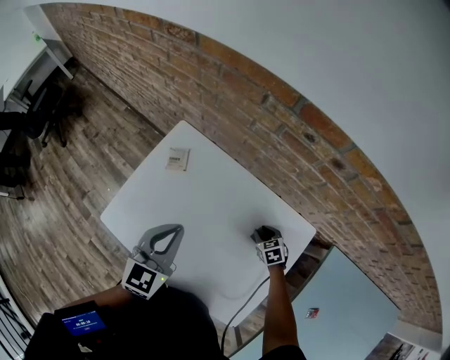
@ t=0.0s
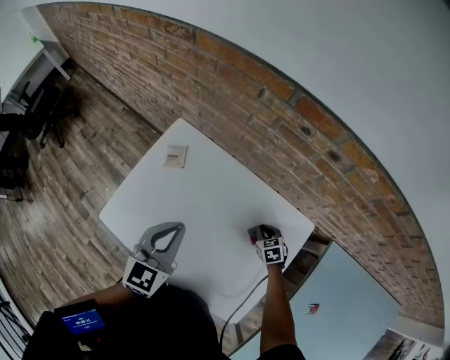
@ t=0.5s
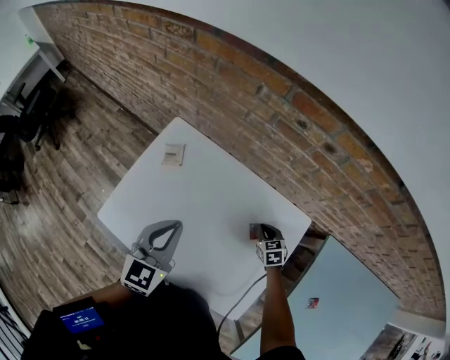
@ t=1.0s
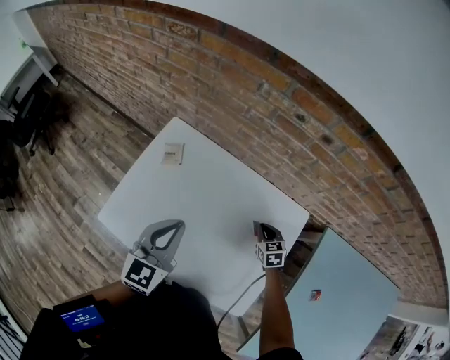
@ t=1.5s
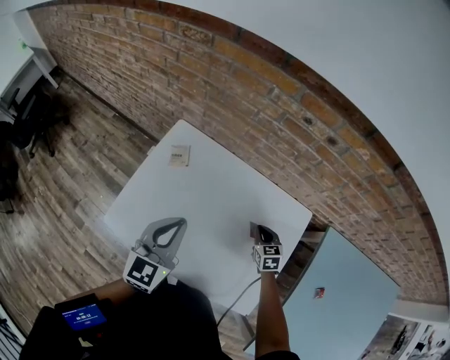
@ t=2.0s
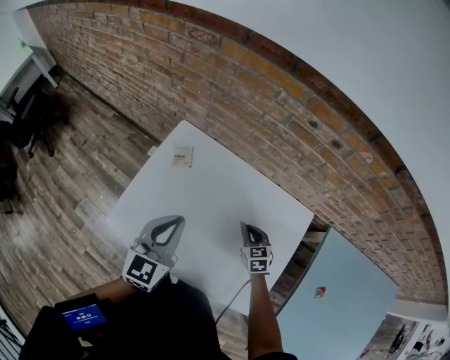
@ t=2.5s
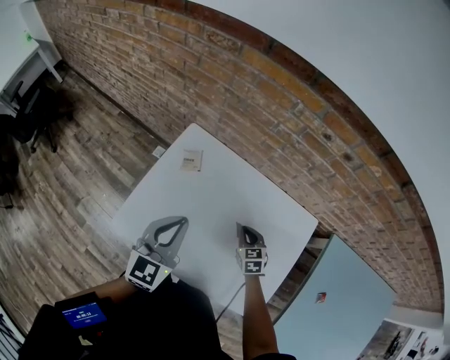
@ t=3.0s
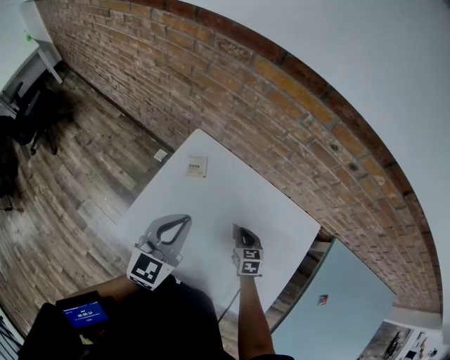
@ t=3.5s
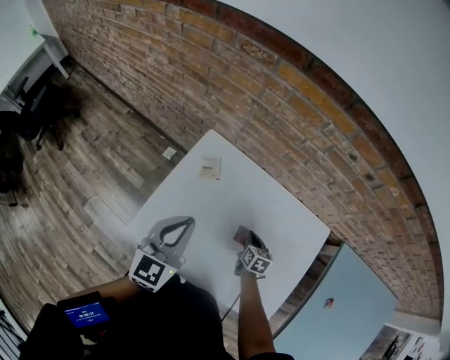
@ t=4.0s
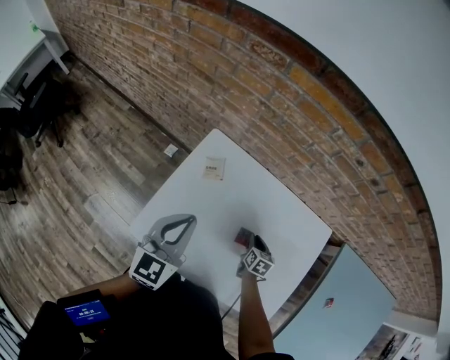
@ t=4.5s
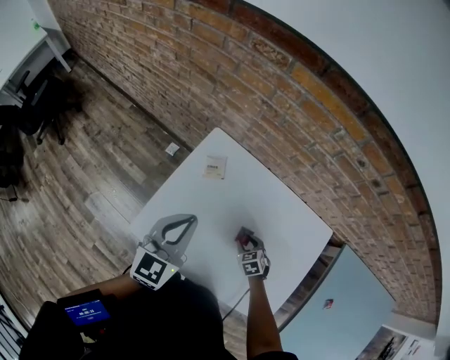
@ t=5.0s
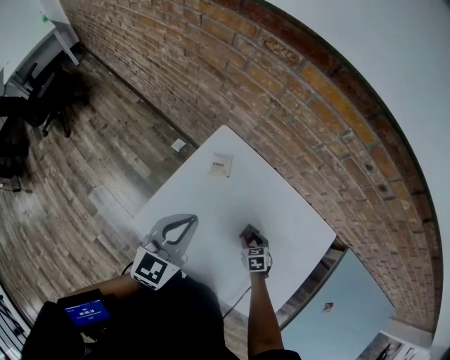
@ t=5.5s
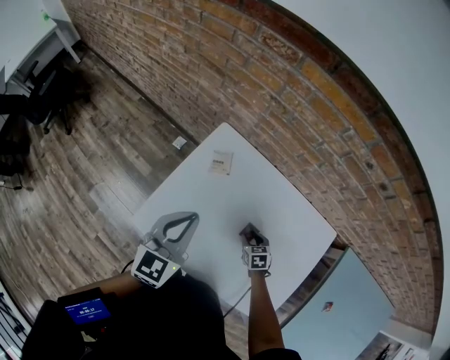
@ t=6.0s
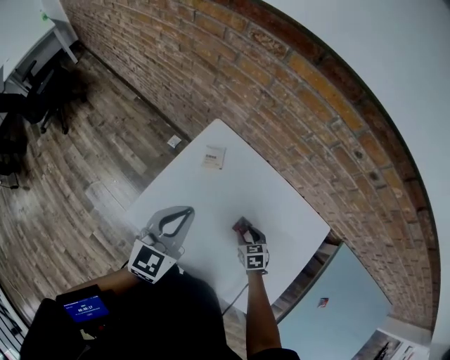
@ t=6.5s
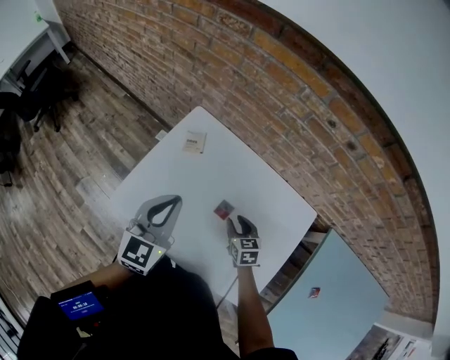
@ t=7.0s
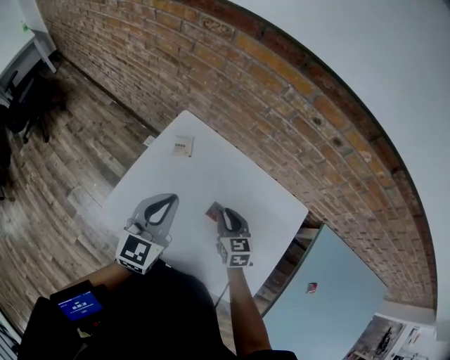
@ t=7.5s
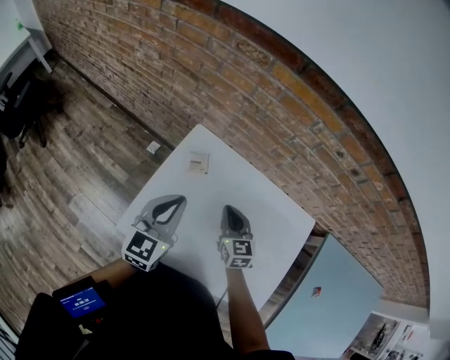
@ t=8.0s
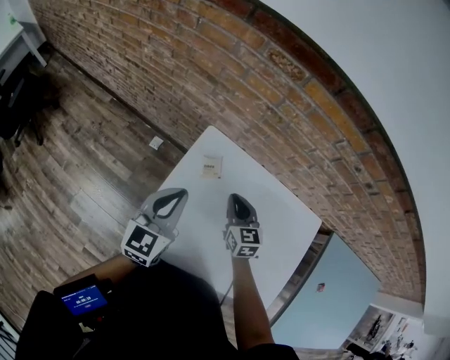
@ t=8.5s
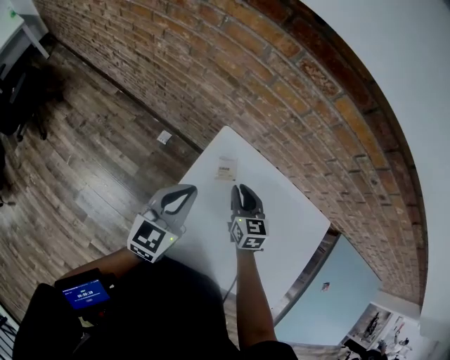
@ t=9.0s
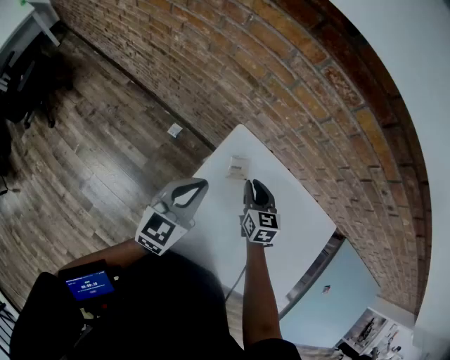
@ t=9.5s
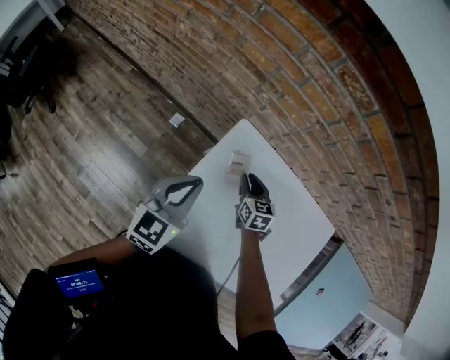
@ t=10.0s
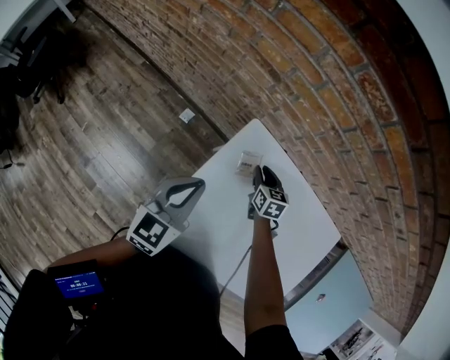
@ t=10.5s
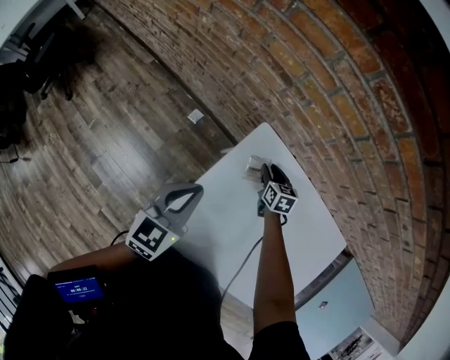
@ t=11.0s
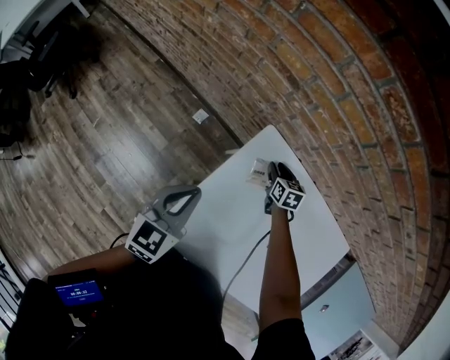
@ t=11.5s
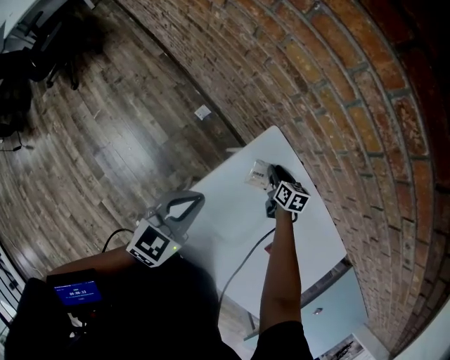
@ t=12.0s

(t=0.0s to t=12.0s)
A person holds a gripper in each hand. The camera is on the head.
t=0.0s - t=2.0s: The left gripper moves some 5 cm. Meanwhile the right gripper heads upward, covering approximately 10 cm, turns by some 20 degrees, and closes its fingers.
t=2.0s - t=4.0s: The two grippers go some 10 cm to the left. The right gripper rotates roughly 30 degrees.
t=4.0s - t=6.0s: The right gripper ends up about 5 cm from where it was, changes its angle by some 30 degrees, and opens up.
t=6.0s - t=8.0s: The right gripper goes some 20 cm upward and to the left, tips its fingers upward by approximately 30 degrees, and closes its fingers.
t=8.0s - t=10.0s: The right gripper shifts roughly 20 cm forward, to the left and downward. Meanwhile the left gripper goes approximately 15 cm to the left and forward.
t=10.0s - t=12.0s: The left gripper shifts approximately 5 cm downward. Meanwhile the right gripper is displaced downward and forward by approximately 15 cm.

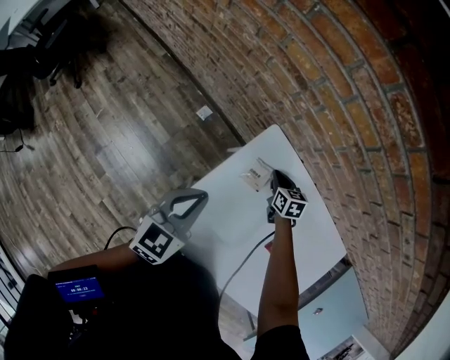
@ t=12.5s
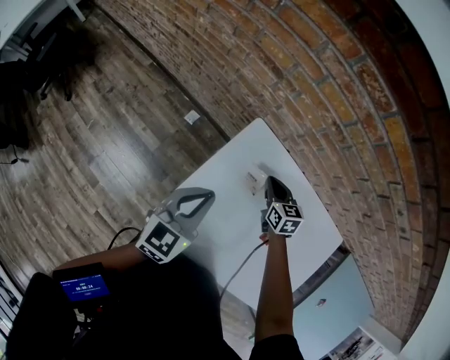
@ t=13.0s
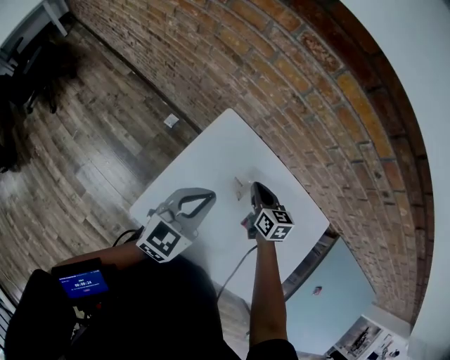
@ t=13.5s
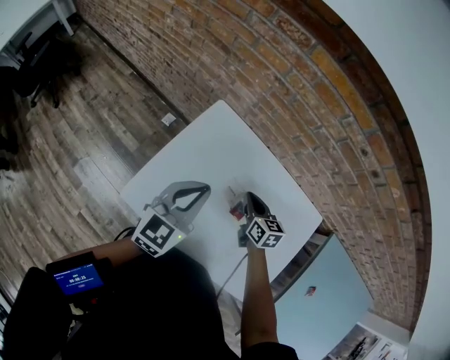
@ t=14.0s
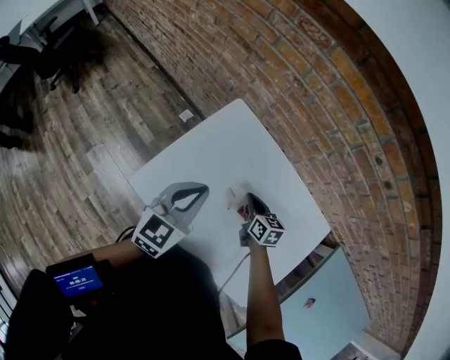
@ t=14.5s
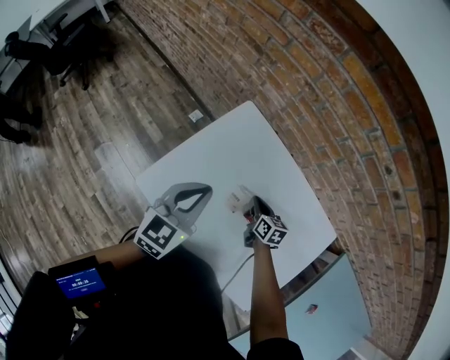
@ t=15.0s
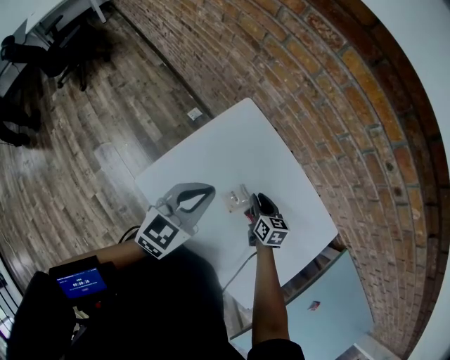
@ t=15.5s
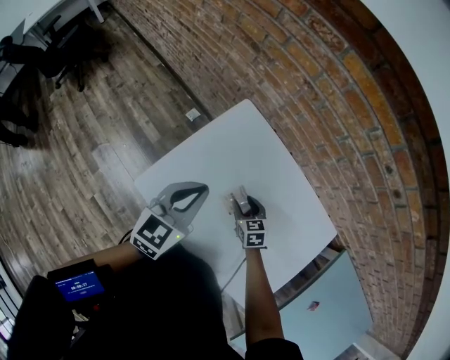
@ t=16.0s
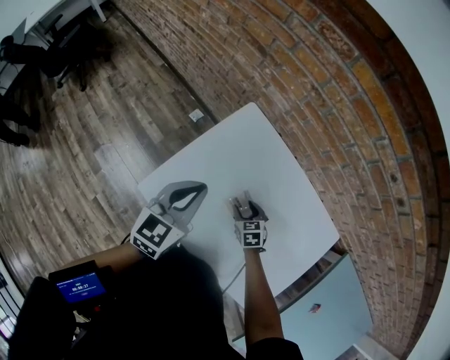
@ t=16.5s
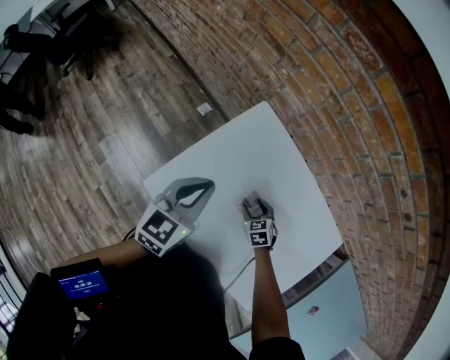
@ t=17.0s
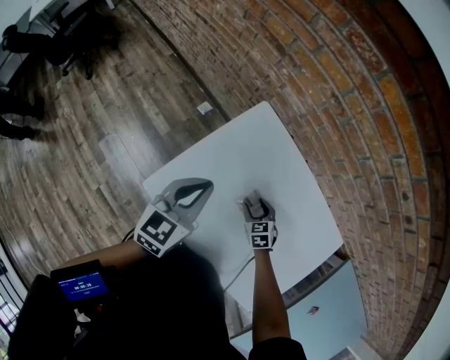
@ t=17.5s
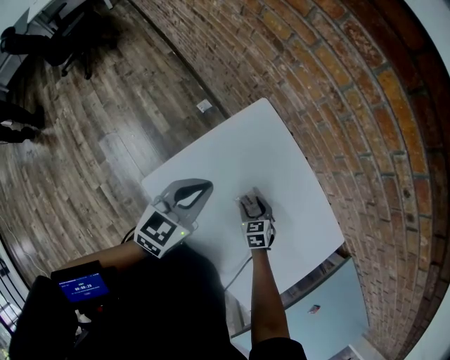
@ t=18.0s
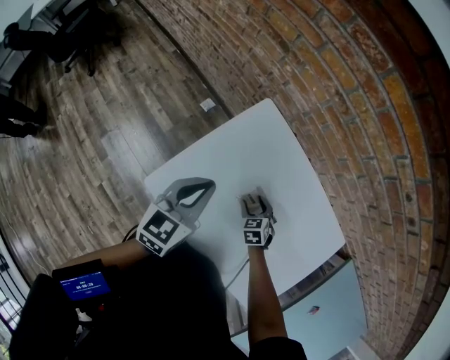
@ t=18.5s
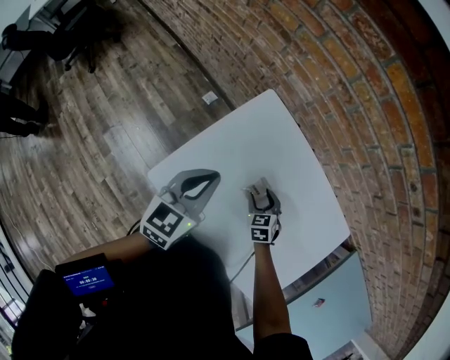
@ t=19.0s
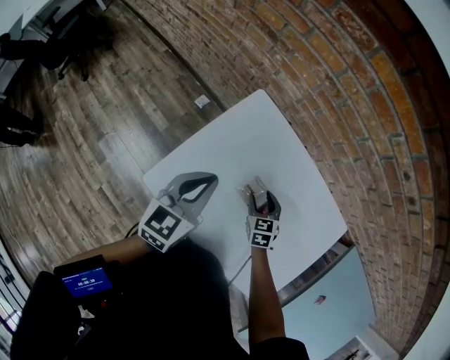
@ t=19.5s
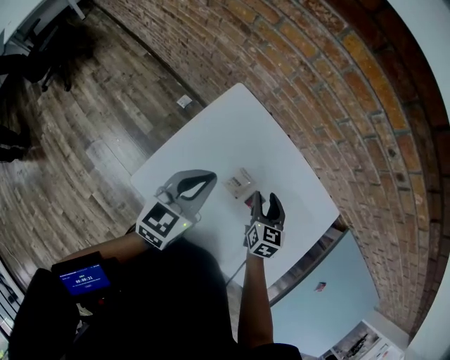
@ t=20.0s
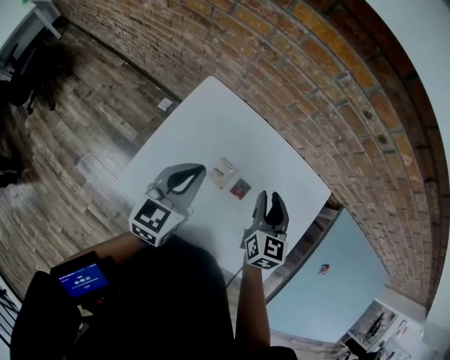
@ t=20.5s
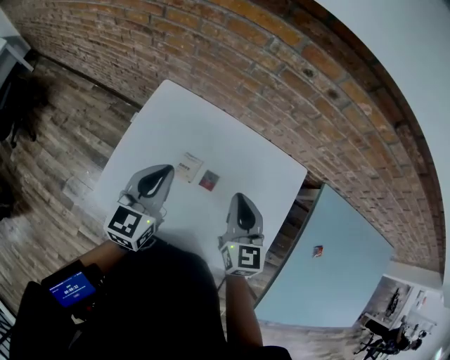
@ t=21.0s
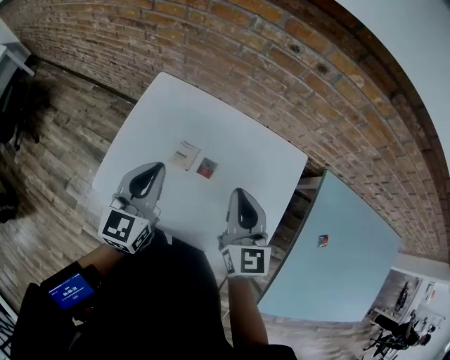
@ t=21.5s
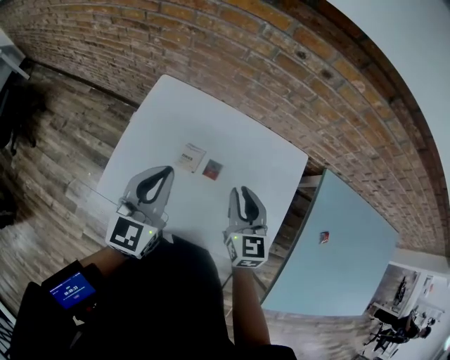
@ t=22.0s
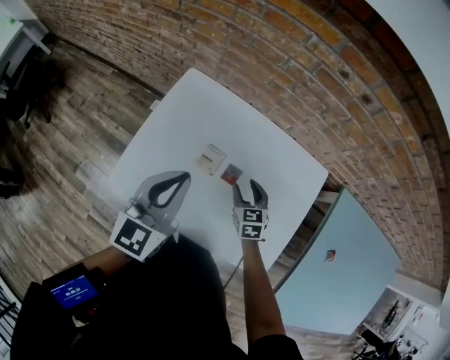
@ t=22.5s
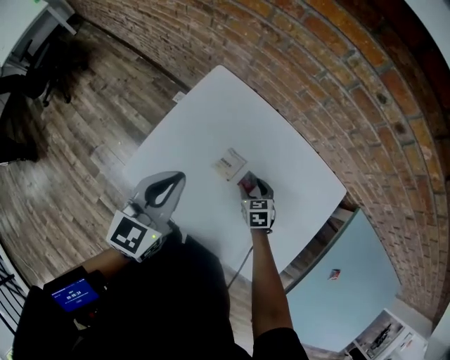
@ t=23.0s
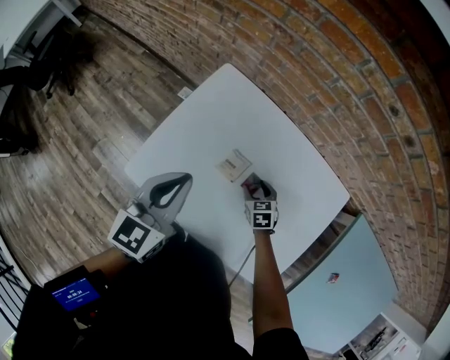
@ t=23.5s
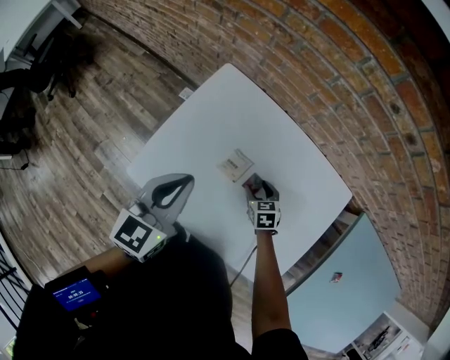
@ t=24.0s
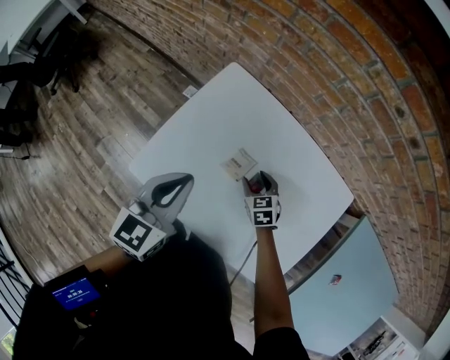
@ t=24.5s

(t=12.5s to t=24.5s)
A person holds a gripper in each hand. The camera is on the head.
t=12.5s - t=14.5s: The right gripper heads backward and to the right, covering some 20 cm; the left gripper moves to the right and backward, approximately 20 cm.
t=14.5s - t=16.5s: The right gripper goes roughly 10 cm downward, changes its angle by roughly 30 degrees, and opens its fingers.
t=16.5s - t=18.5s: There are only small adjustments of the grippers.
t=18.5s - t=20.5s: The left gripper heads to the right, covering roughly 10 cm. Meanwhile the right gripper travels upward and to the right by some 30 cm, tips its fingers upward by roughly 30 degrees, and closes.
t=20.5s - t=22.5s: The left gripper shifts by roughly 10 cm. Meanwhile the right gripper goes about 15 cm downward, rotates some 20 degrees, and closes and opens again.
t=22.5s - t=24.5s: The left gripper shifts approximately 5 cm to the left, while the right gripper goes about 10 cm downward and to the left.

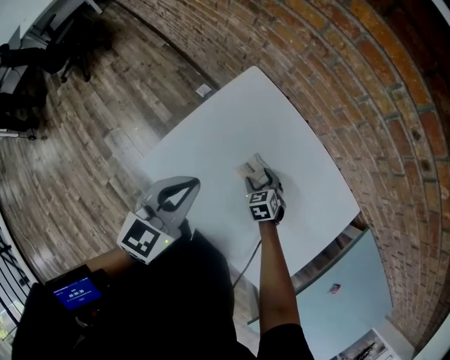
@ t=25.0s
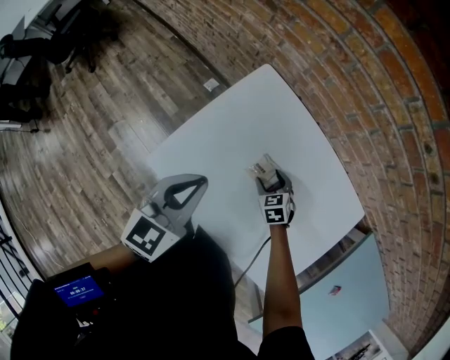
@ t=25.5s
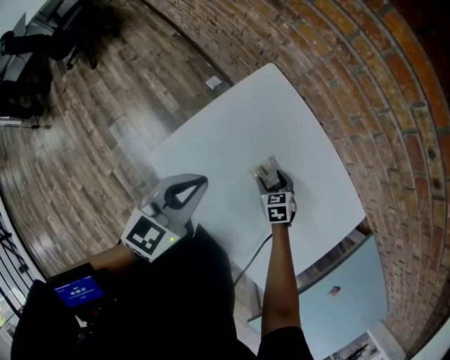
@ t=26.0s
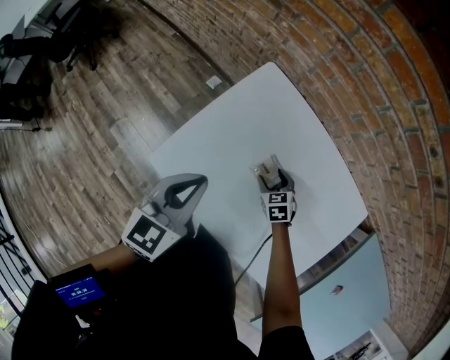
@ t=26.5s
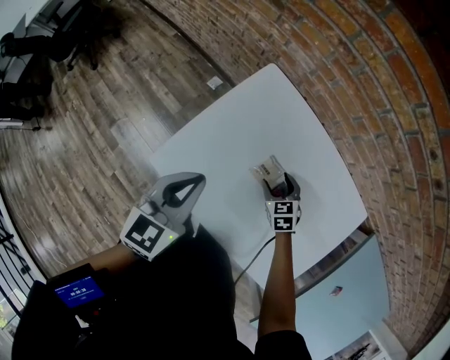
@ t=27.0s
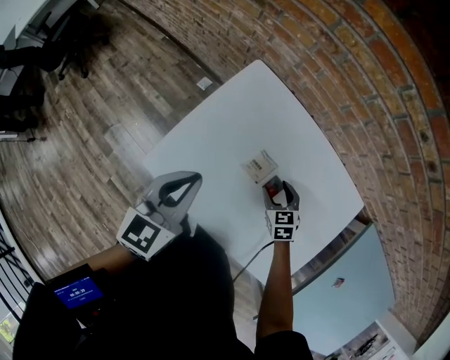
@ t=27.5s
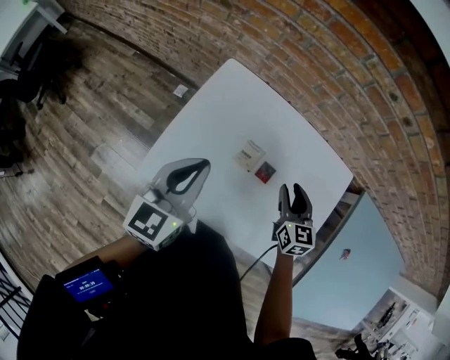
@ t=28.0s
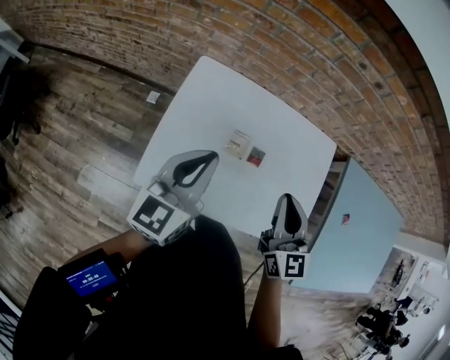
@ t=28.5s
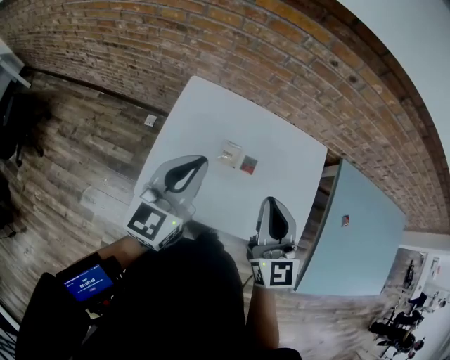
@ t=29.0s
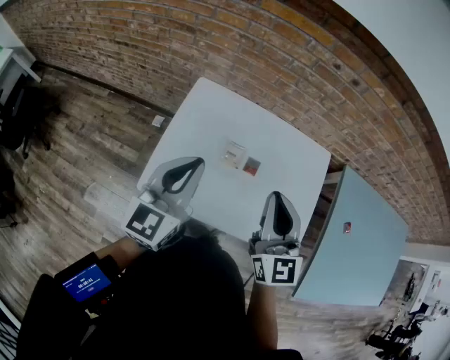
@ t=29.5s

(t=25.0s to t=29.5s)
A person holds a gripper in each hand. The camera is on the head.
t=25.0s - t=27.0s: The grippers make only small movements.
t=27.0s - t=29.5s: The left gripper travels upward by about 10 cm, and changes its angle by some 30 degrees, while the right gripper moves upward, some 35 cm, tips its fingers upward by about 50 degrees, and closes its fingers.
